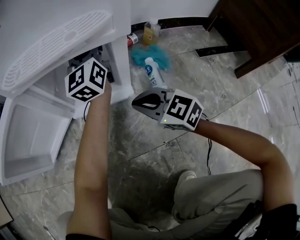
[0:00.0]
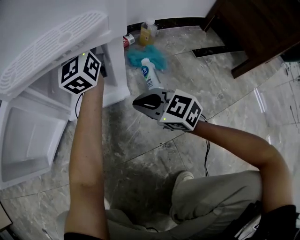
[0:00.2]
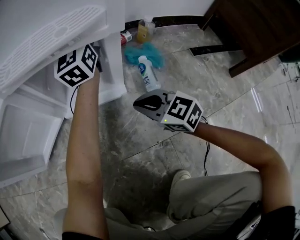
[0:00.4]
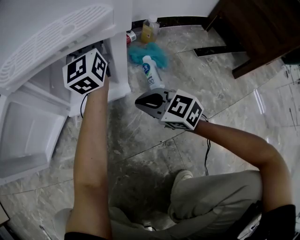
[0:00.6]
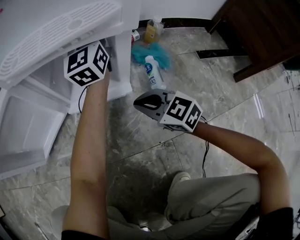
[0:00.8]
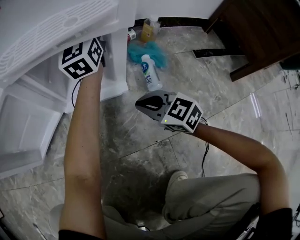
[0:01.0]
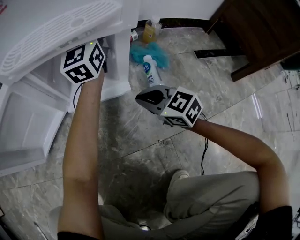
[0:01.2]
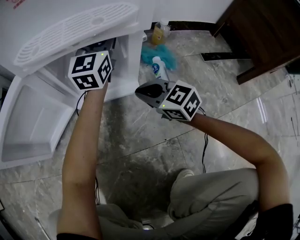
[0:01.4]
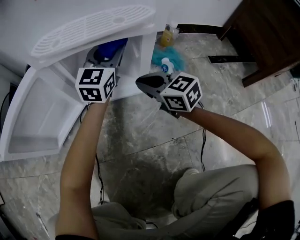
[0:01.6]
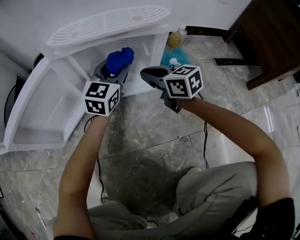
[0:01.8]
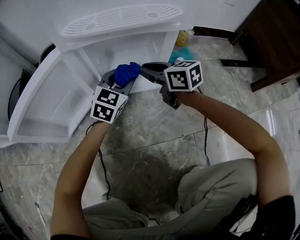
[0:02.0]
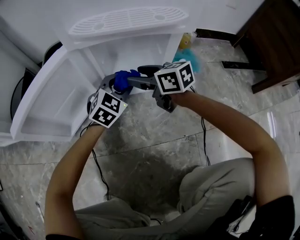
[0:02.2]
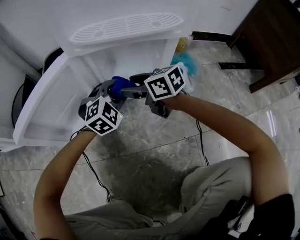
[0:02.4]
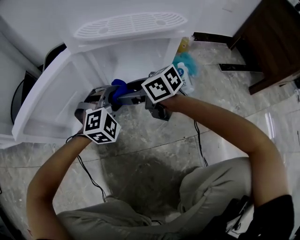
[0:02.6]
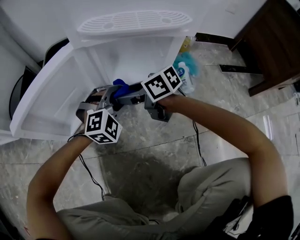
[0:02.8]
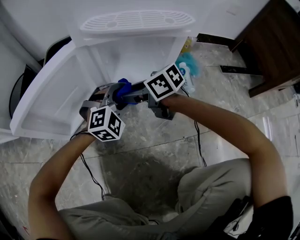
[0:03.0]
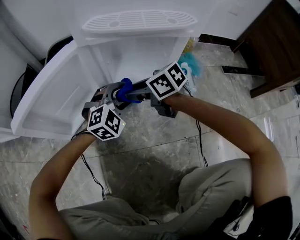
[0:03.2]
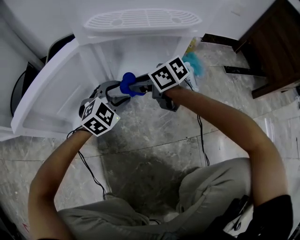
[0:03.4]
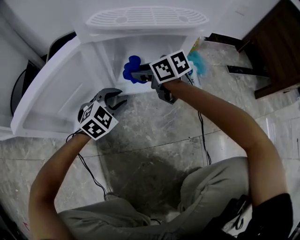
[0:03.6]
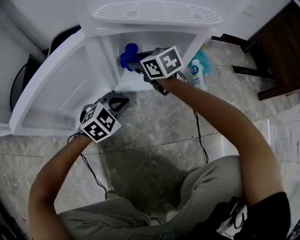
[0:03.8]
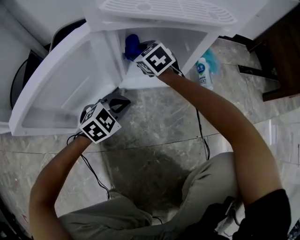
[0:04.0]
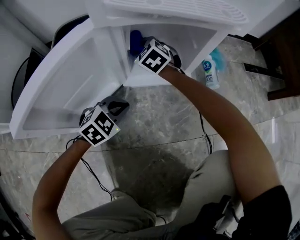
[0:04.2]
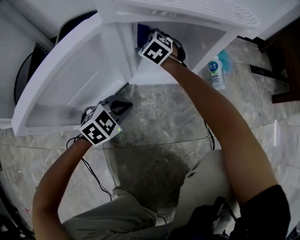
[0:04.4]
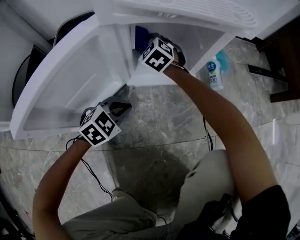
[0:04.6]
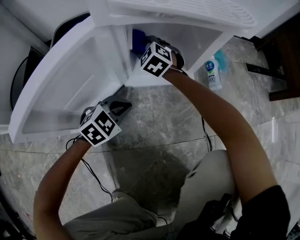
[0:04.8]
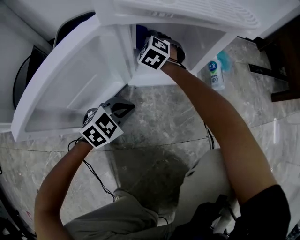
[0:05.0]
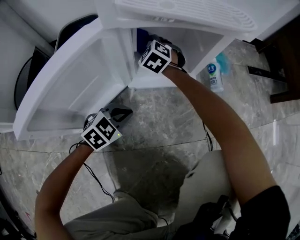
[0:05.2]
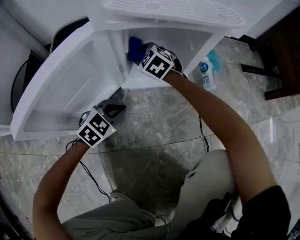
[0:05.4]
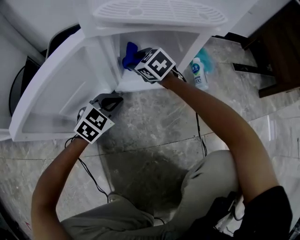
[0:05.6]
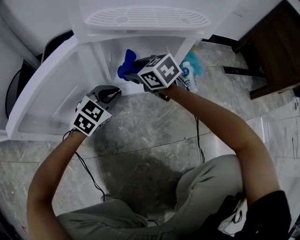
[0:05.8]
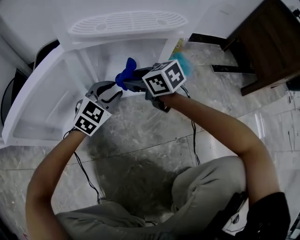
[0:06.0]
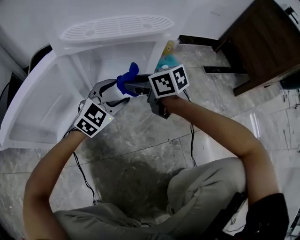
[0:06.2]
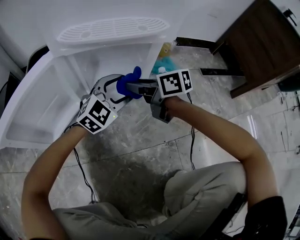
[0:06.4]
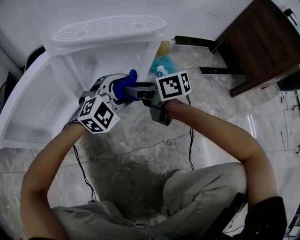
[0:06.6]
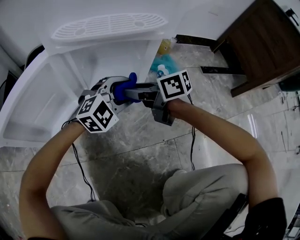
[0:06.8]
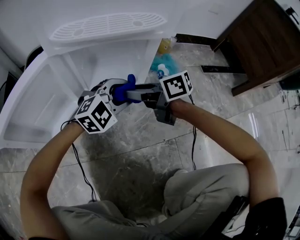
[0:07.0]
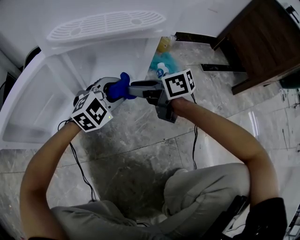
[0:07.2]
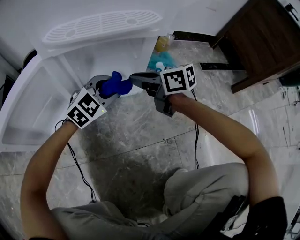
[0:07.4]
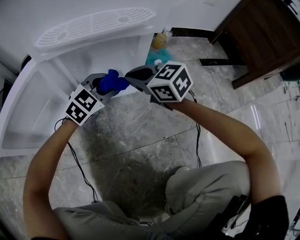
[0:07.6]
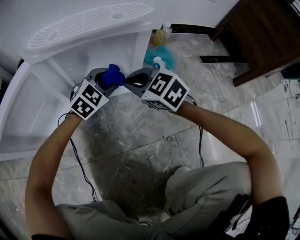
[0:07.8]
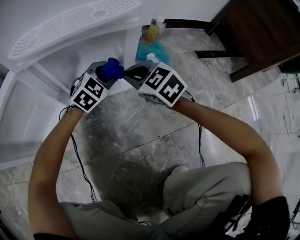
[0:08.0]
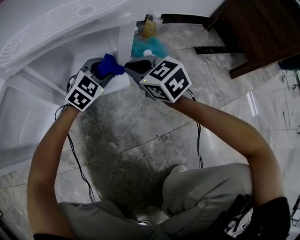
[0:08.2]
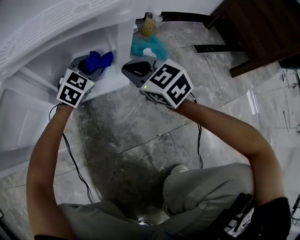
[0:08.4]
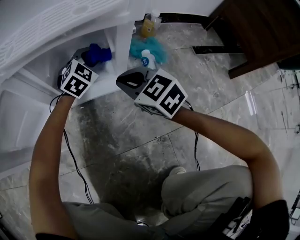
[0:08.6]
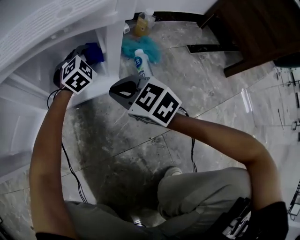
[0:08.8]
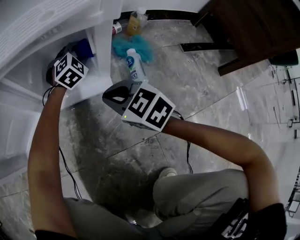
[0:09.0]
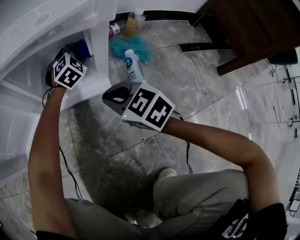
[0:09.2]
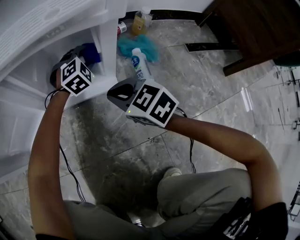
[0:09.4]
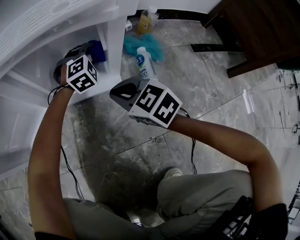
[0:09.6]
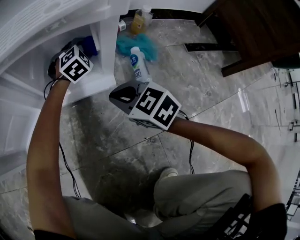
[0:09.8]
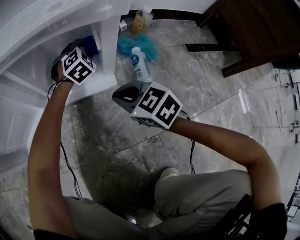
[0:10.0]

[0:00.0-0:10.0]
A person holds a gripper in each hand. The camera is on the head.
0:00.0 to 0:01.4: The grippers make only small movements.
0:01.4 to 0:02.8: The right gripper heads to the left, covering roughly 15 cm, turns by about 40 degrees, and opens its fingers; the left gripper heads backward, downward and to the left, covering some 25 cm, and tilts its fingers roughly 40 degrees downward.
0:02.8 to 0:04.2: The right gripper changes place by about 20 cm, changes its angle by approximately 60 degrees, and closes up. The left gripper shifts by some 15 cm, swivels about 40 degrees, and closes its fingers.
0:04.2 to 0:05.8: The left gripper moves forward and upward, some 10 cm; the right gripper is displaced backward, upward and to the right by some 10 cm, and turns by roughly 30 degrees.
0:05.8 to 0:07.2: The left gripper ends up some 15 cm from where it was, turns by some 30 degrees, and opens its fingers. Meanwhile the right gripper shifts by about 15 cm, and changes its angle by about 40 degrees.
0:07.2 to 0:08.6: The right gripper rolls counterclockwise, seen from behind, by about 40 degrees, and closes, while the left gripper moves forward, approximately 15 cm, and changes its angle by approximately 20 degrees.
0:08.6 to 0:10.0: The left gripper changes place by about 5 cm. The right gripper shifts by approximately 5 cm.

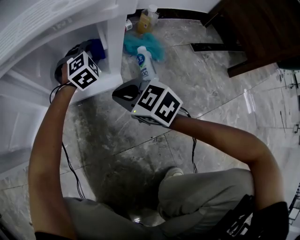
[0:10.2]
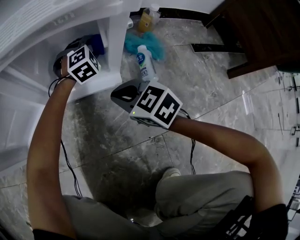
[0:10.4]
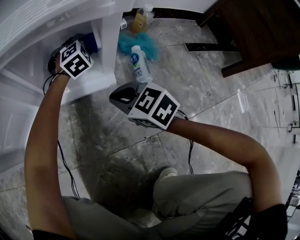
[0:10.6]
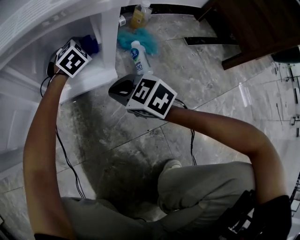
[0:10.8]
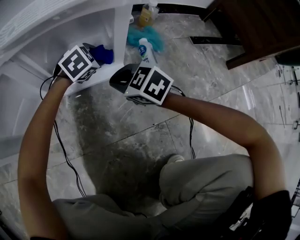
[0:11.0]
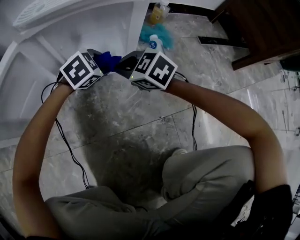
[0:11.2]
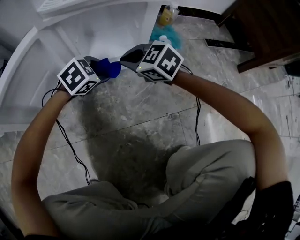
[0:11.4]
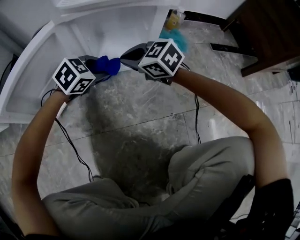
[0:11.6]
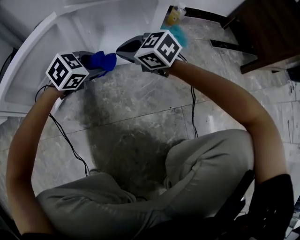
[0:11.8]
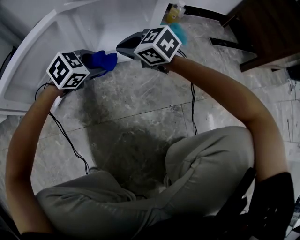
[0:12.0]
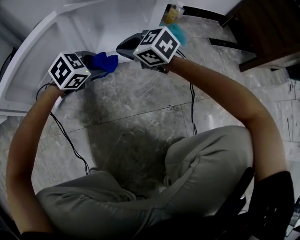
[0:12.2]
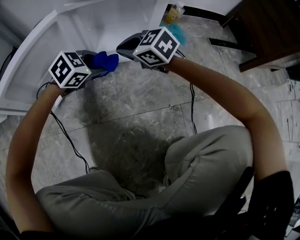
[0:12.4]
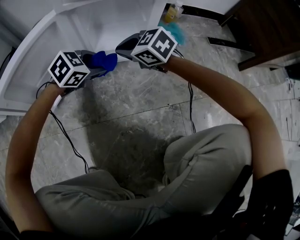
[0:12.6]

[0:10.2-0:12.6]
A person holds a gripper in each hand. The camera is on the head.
0:10.2 to 0:11.4: The right gripper is displaced to the left by some 5 cm. The left gripper shifts approximately 20 cm backward and to the left, and rotates about 40 degrees.
0:11.4 to 0:12.6: The left gripper shifts by approximately 5 cm.

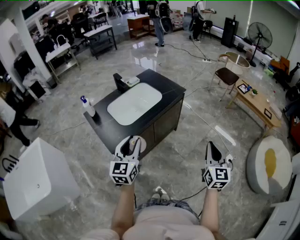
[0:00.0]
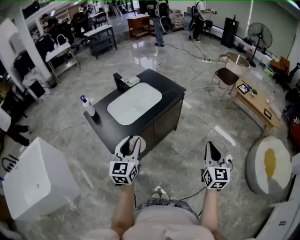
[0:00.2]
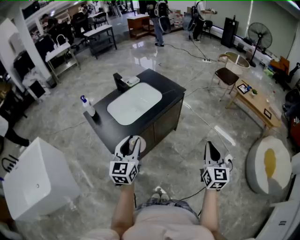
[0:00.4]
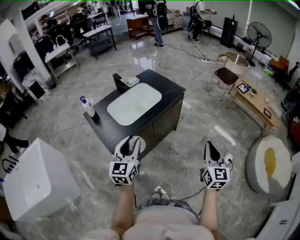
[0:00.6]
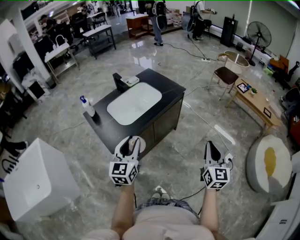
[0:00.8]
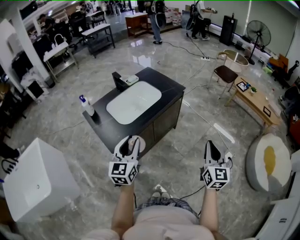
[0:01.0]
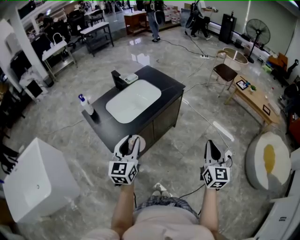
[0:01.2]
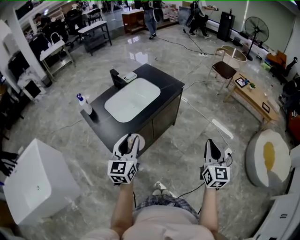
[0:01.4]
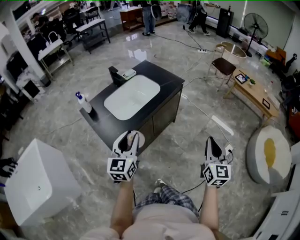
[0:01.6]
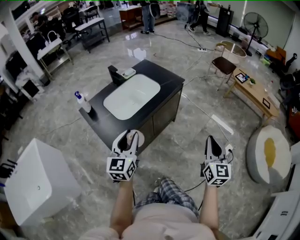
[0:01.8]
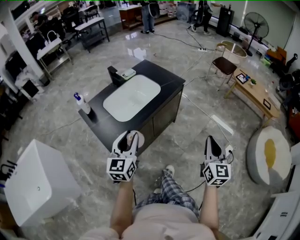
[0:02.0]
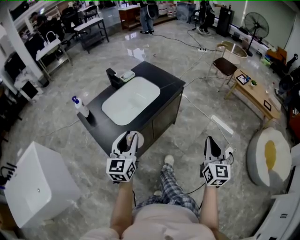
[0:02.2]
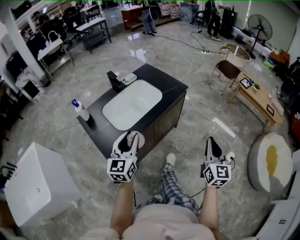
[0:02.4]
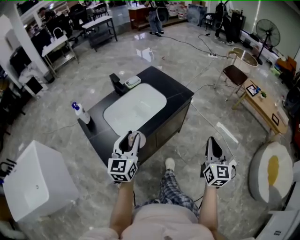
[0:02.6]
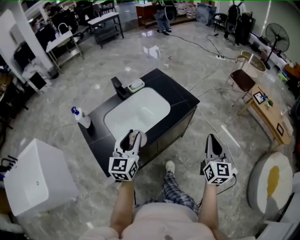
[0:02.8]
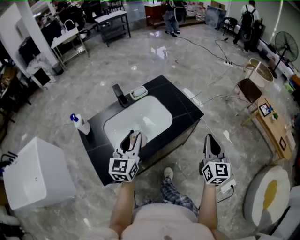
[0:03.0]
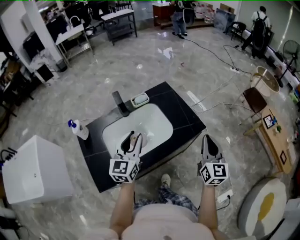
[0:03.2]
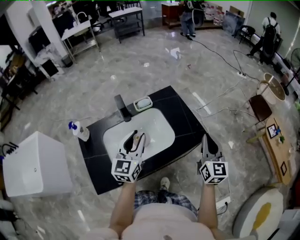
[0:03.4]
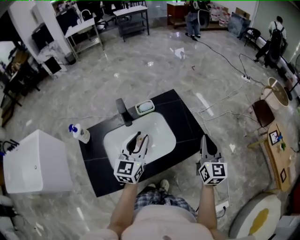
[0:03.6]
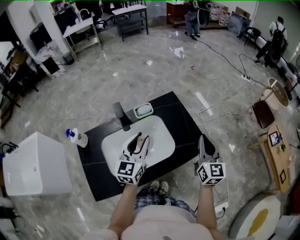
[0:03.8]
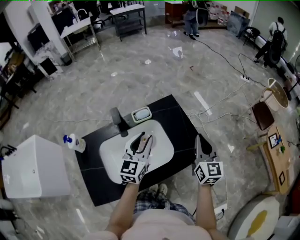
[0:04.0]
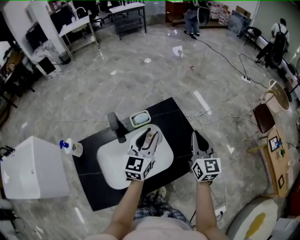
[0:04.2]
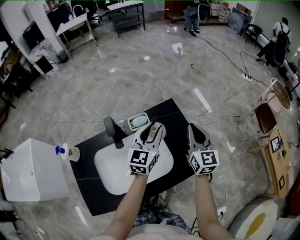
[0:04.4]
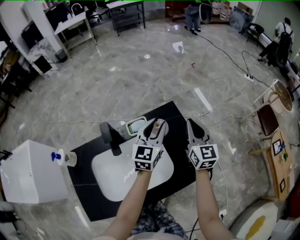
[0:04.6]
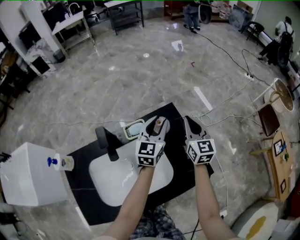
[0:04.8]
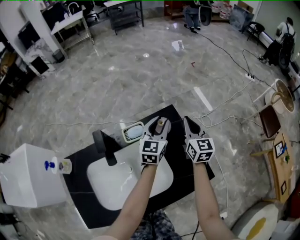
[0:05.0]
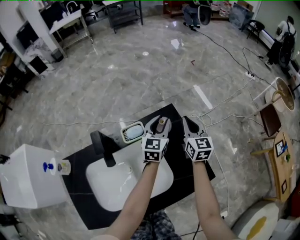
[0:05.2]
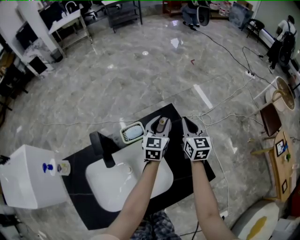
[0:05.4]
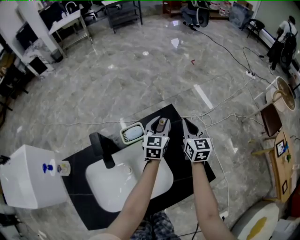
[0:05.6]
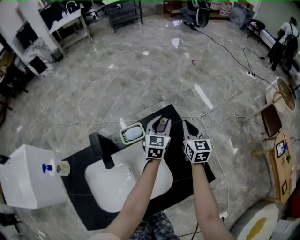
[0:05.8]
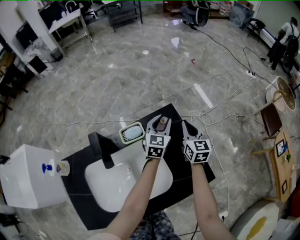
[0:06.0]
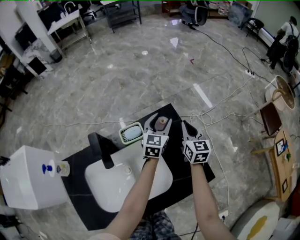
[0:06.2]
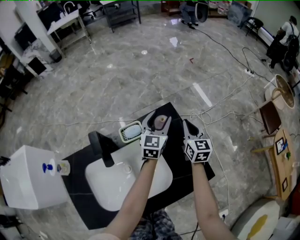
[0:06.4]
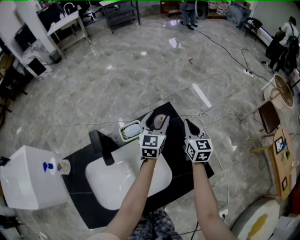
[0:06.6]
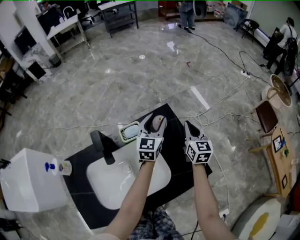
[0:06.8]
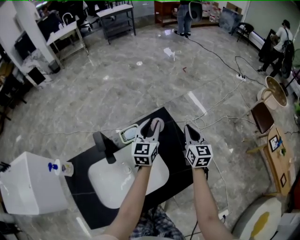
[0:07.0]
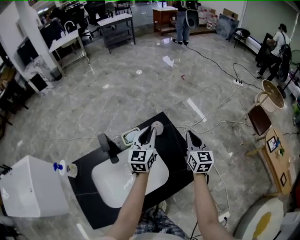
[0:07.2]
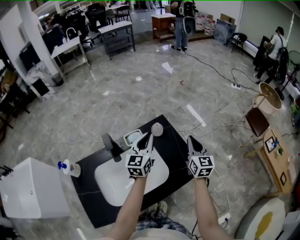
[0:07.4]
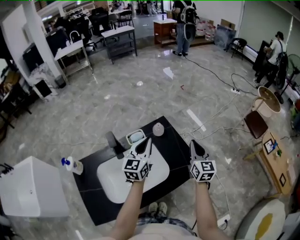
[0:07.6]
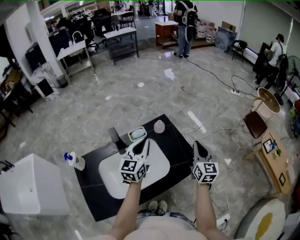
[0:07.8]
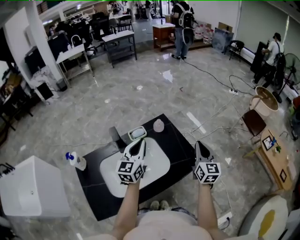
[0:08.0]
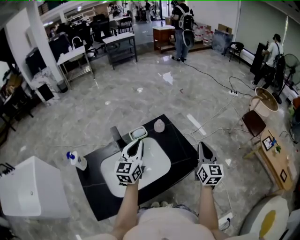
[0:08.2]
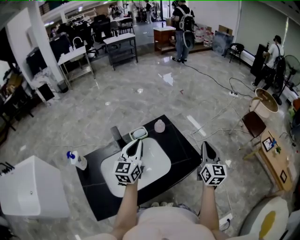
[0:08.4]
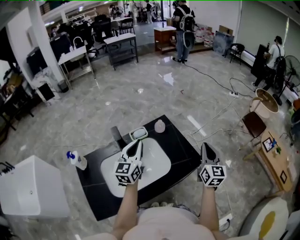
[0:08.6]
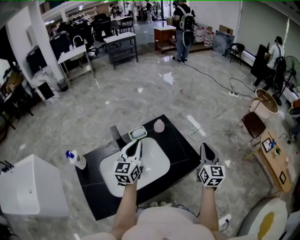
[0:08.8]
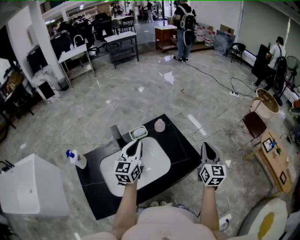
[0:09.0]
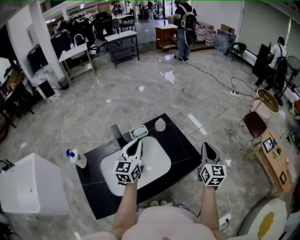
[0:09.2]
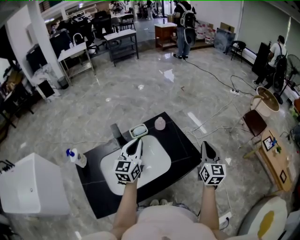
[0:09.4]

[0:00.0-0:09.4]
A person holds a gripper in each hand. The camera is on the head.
0:00.0 to 0:01.6: The grippers stay close to where they were, moving slightly.
0:01.6 to 0:03.2: The pair of grippers is taken forward, some 50 cm.
0:03.2 to 0:04.8: The two grippers travel together, forward, roughly 40 cm.
0:04.8 to 0:06.2: The left gripper shifts roughly 10 cm downward and forward; the right gripper is displaced downward by approximately 10 cm.
0:06.2 to 0:07.8: The two grippers go roughly 35 cm backward and upward. The left gripper closes.
0:07.8 to 0:09.4: The right gripper moves about 5 cm. Meanwhile the left gripper ends up approximately 5 cm from where it was.

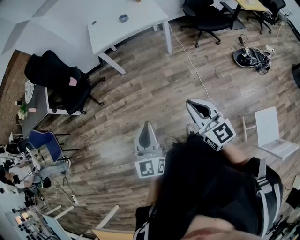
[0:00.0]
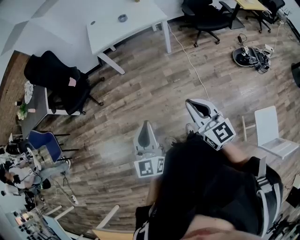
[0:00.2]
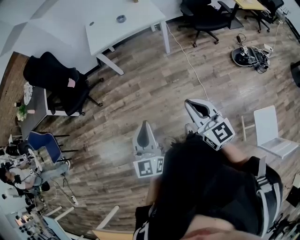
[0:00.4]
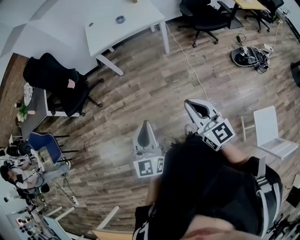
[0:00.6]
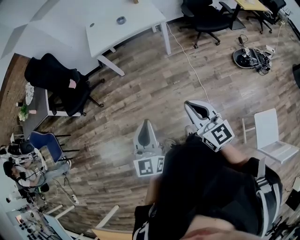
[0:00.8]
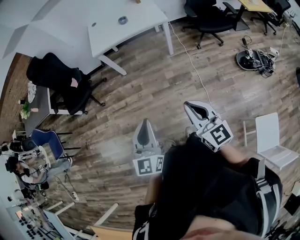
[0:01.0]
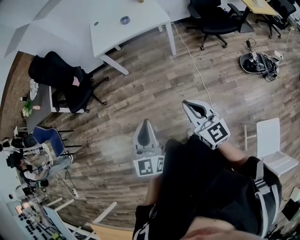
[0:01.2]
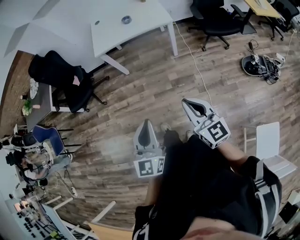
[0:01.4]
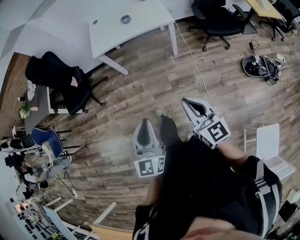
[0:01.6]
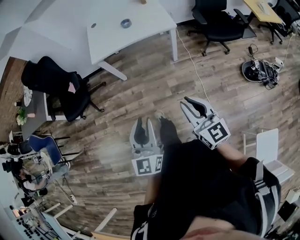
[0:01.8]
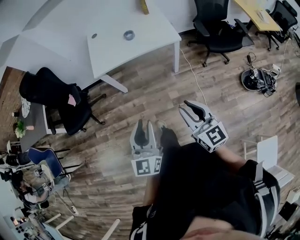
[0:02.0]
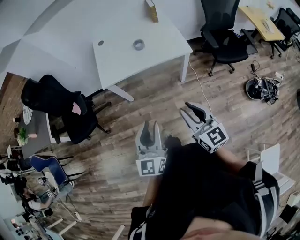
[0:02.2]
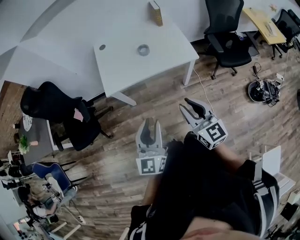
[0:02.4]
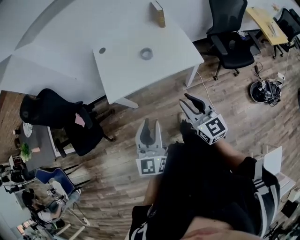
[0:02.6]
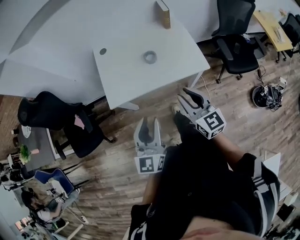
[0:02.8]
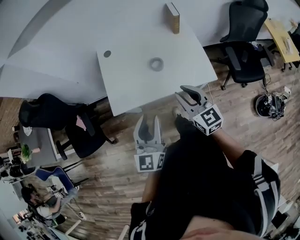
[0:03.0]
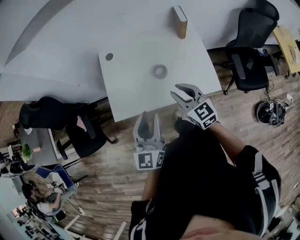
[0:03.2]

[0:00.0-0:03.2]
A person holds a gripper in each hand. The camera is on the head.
0:00.0 to 0:01.6: The two grippers go about 15 cm forward and to the right.
0:01.6 to 0:03.2: The two grippers travel together, forward, some 80 cm. The right gripper opens its fingers. Meanwhile the left gripper opens its fingers.
